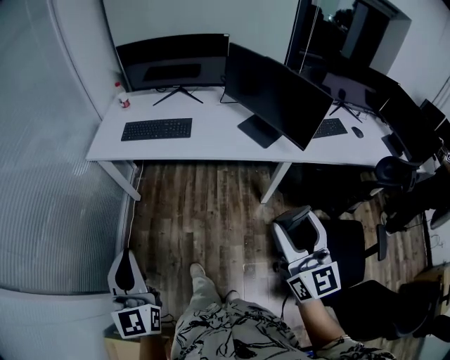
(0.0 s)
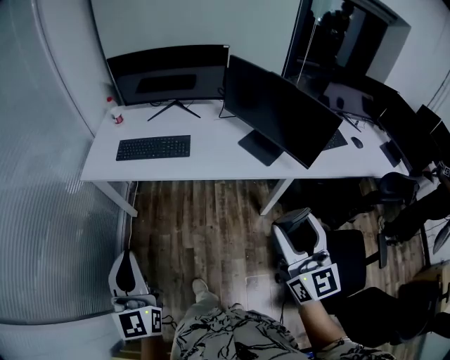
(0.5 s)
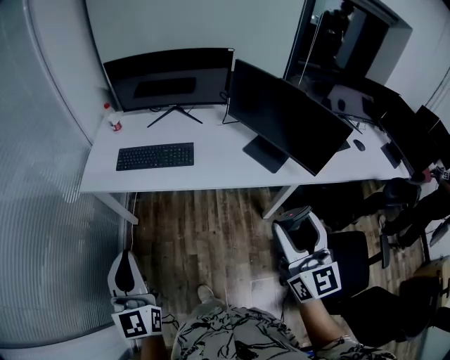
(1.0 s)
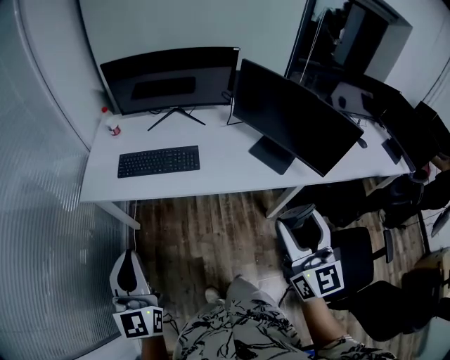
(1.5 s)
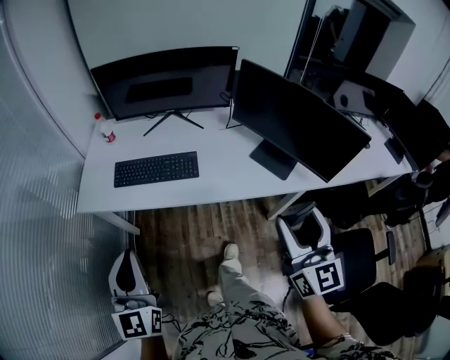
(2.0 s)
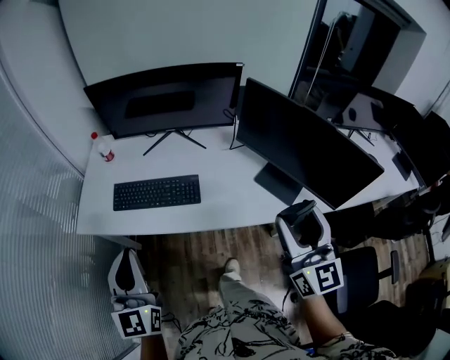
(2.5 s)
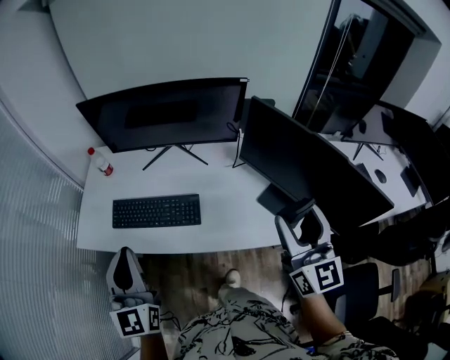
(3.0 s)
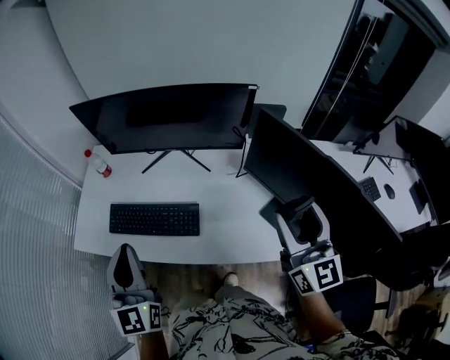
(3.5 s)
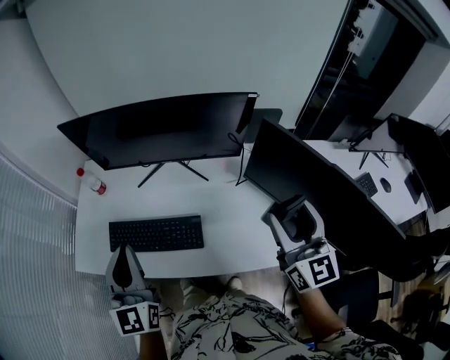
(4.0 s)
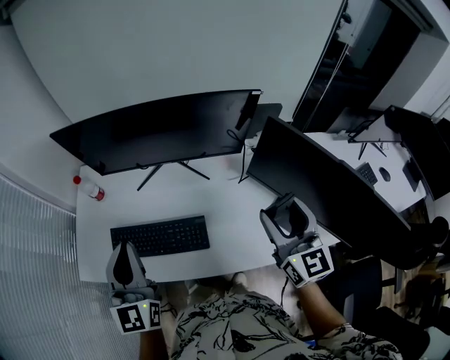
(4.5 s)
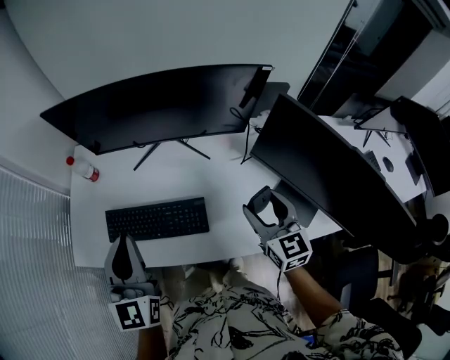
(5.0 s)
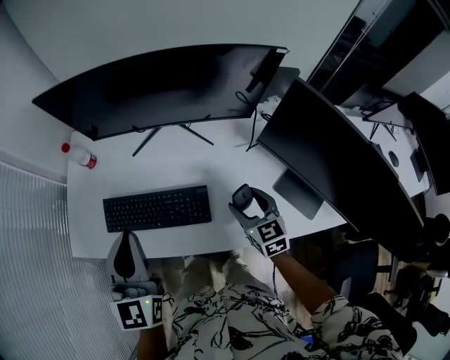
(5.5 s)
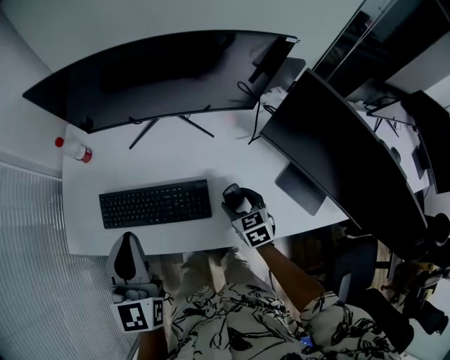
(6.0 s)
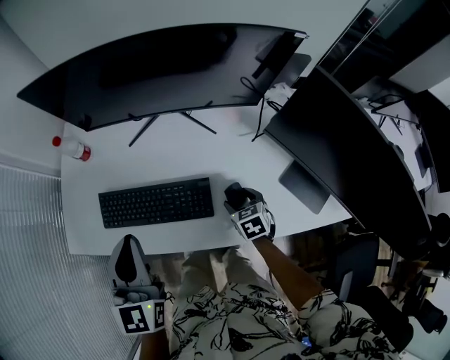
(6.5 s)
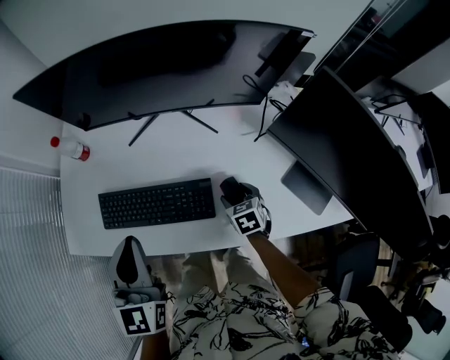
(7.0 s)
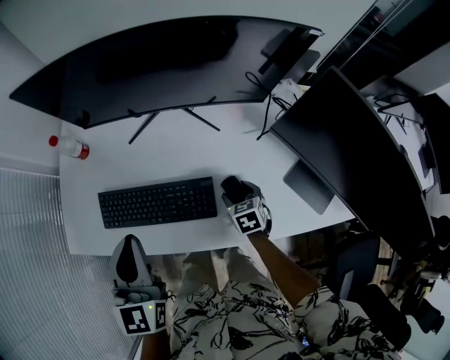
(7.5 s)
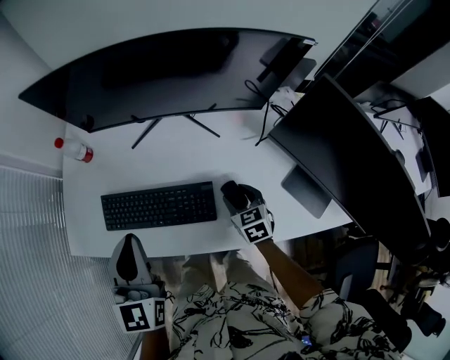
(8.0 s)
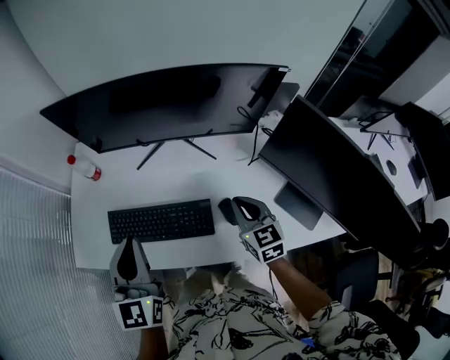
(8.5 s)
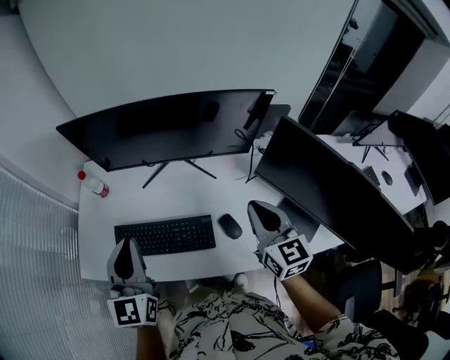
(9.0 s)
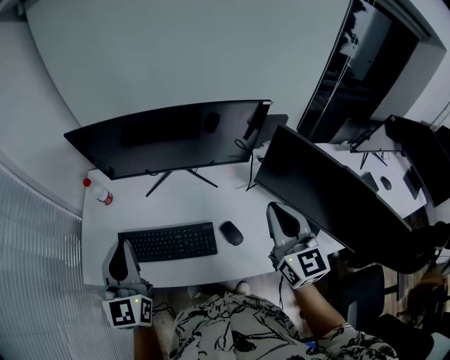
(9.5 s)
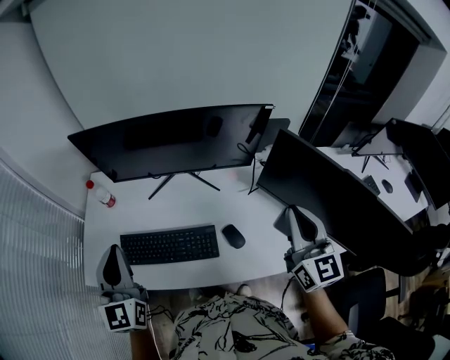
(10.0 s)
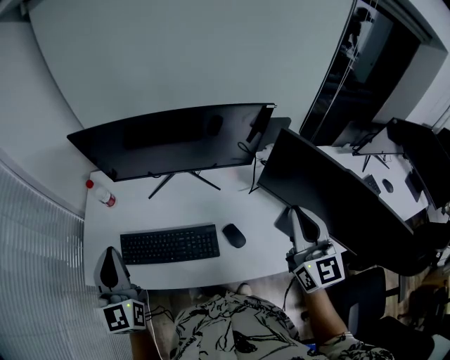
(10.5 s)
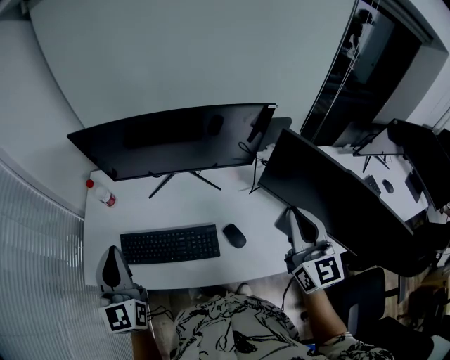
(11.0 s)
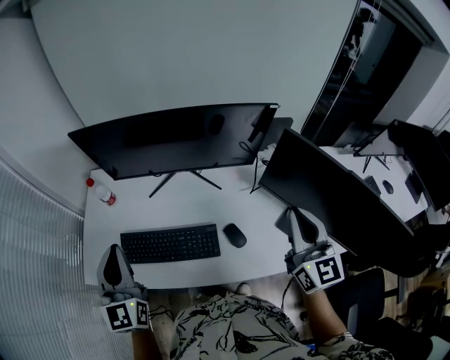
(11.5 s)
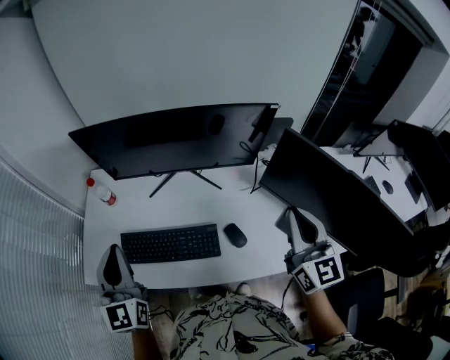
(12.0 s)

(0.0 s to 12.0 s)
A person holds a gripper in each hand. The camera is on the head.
0.0 s - 2.0 s: The two grippers go about 25 cm forward.
2.0 s - 4.0 s: Both grippers travel together forward, some 35 cm.
4.0 s - 6.0 s: The right gripper goes about 35 cm downward, and tilts its fingers about 50 degrees downward. Meanwhile the left gripper travels downward by roughly 10 cm.
8.0 s - 10.0 s: The left gripper shifts about 10 cm upward and to the left; the right gripper moves upward, about 35 cm, angles its fingers upward, by some 50 degrees, and closes its fingers.
10.0 s - 12.0 s: There are only small adjustments of the grippers.

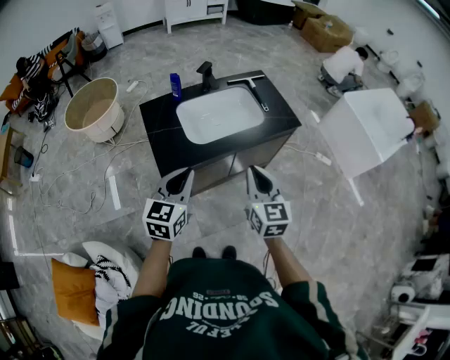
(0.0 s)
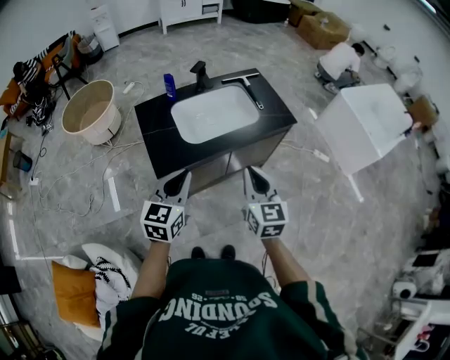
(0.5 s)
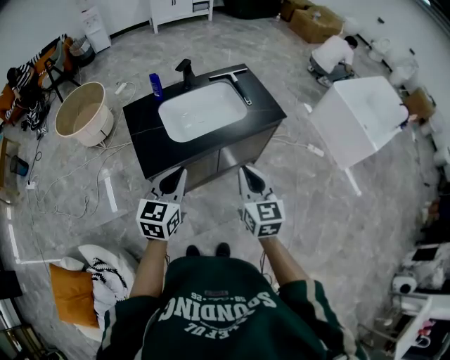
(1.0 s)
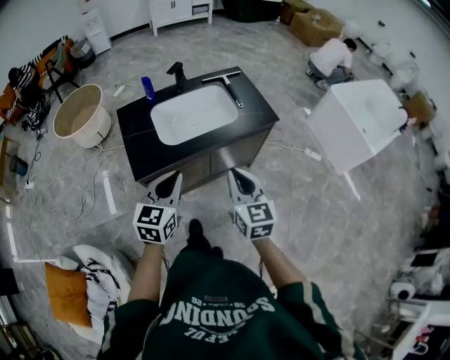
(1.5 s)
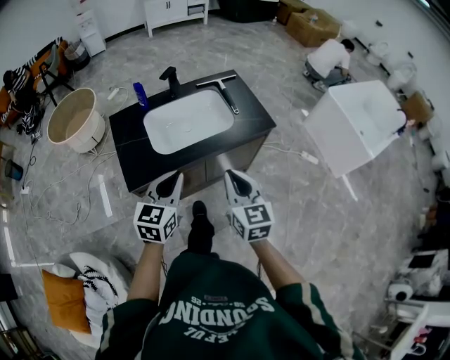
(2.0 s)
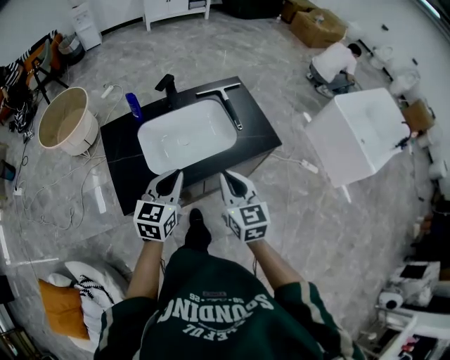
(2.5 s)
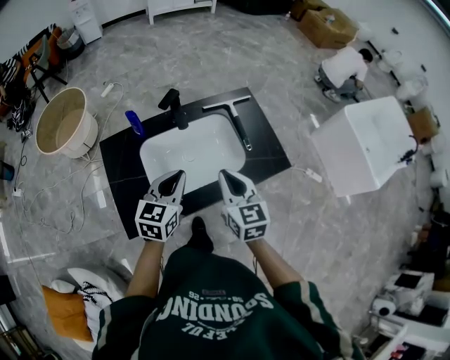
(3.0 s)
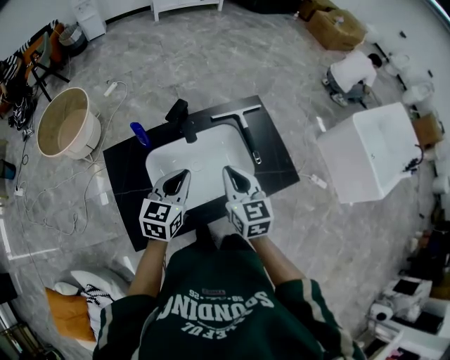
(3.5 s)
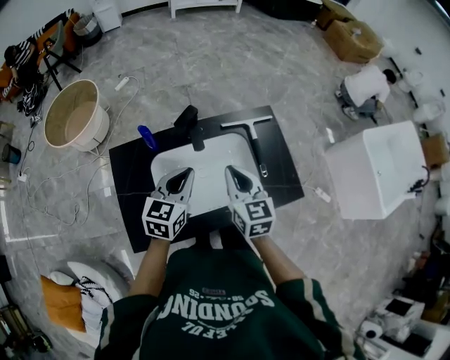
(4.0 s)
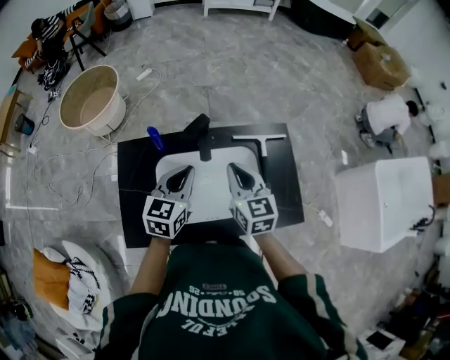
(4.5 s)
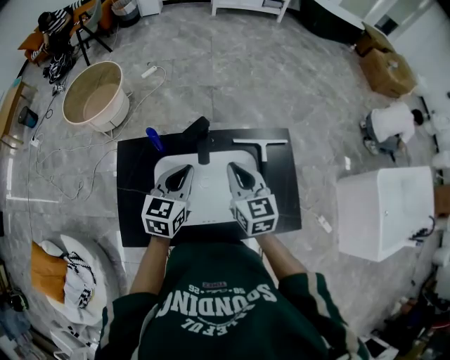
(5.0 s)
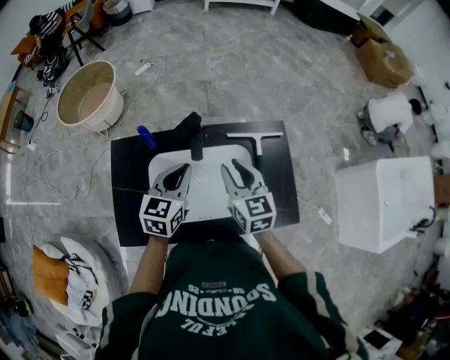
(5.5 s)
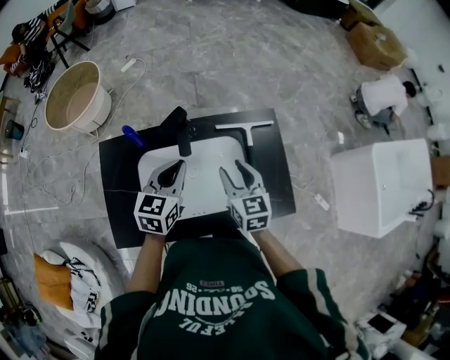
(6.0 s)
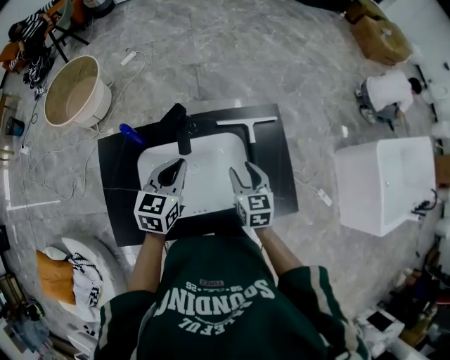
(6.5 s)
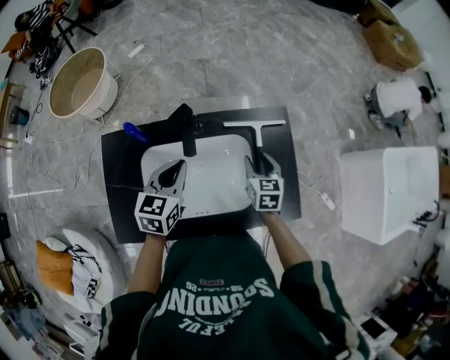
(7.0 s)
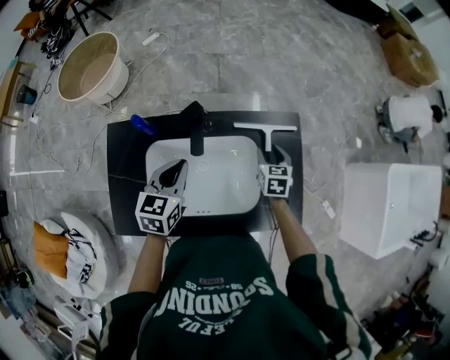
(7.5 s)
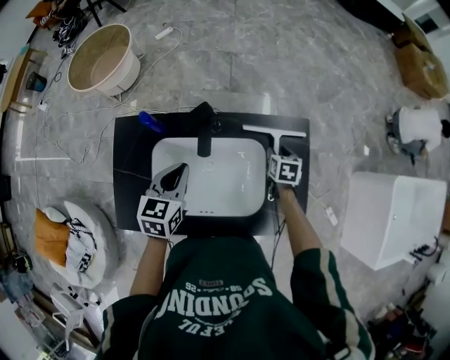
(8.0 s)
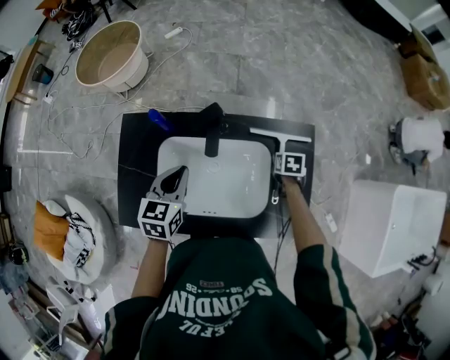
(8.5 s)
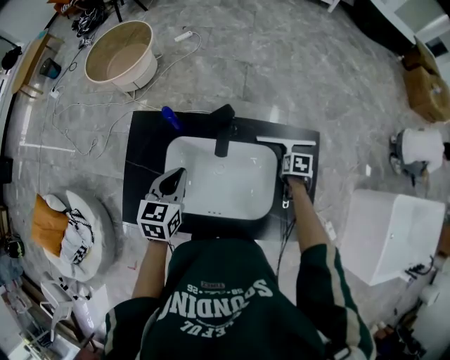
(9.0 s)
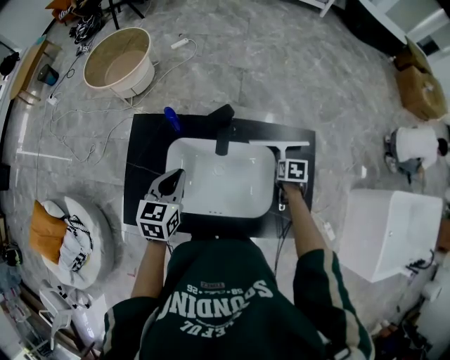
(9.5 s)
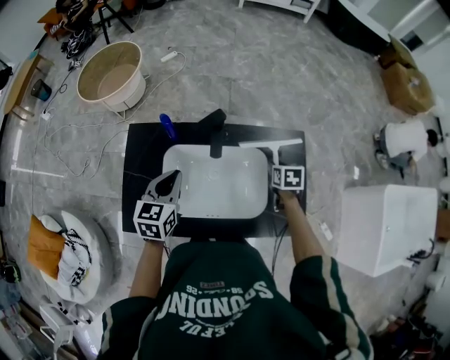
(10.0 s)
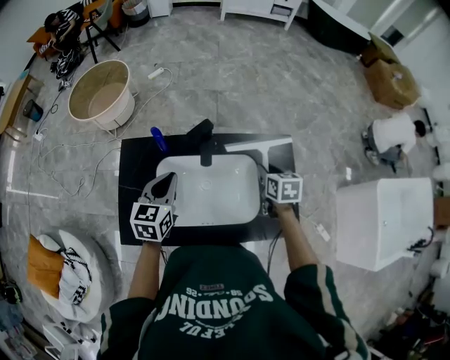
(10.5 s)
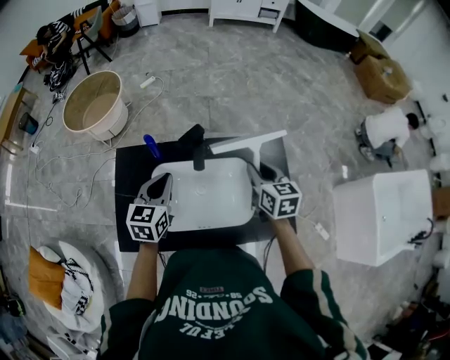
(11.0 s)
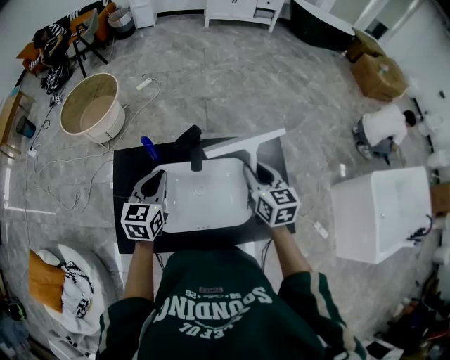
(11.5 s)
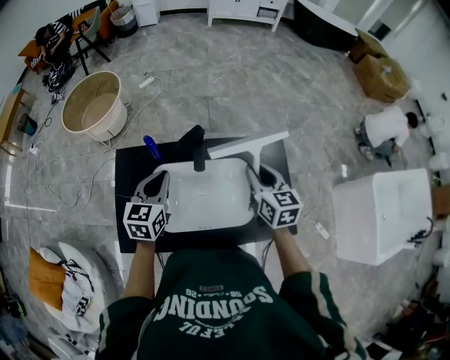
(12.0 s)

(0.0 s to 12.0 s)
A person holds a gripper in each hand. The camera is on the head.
0.0 s - 2.0 s: The right gripper goes about 10 cm to the right, while the left gripper moves to the right and forward, about 15 cm.
2.0 s - 4.0 s: The two grippers go roughly 35 cm forward.
4.0 s - 6.0 s: The left gripper travels forward by about 5 cm. The right gripper moves downward, forward and to the right, about 10 cm, and opens its fingers.
6.0 s - 8.0 s: The left gripper changes place by approximately 5 cm. Meanwhile the right gripper travels downward, forward and to the right by about 25 cm, and tilts its fingers about 30 degrees downward.
8.0 s - 10.0 s: The right gripper shifts roughly 5 cm upward, and closes its fingers. Meanwhile the left gripper goes about 5 cm to the left.
10.0 s - 12.0 s: The right gripper moves upward, approximately 20 cm, and angles its fingers upward, by about 40 degrees; the left gripper moves roughly 5 cm.

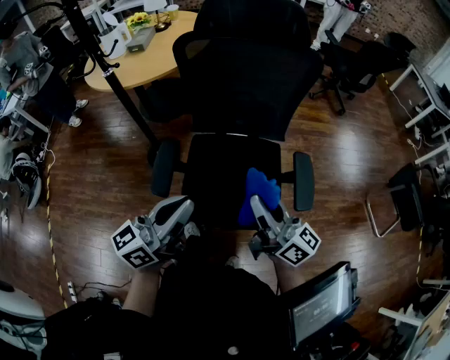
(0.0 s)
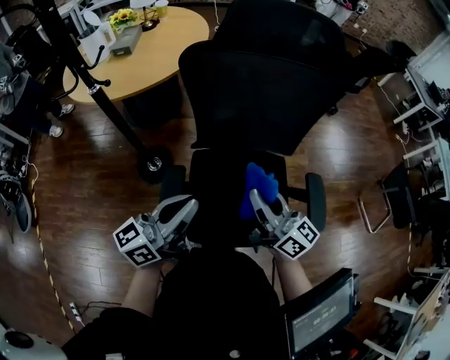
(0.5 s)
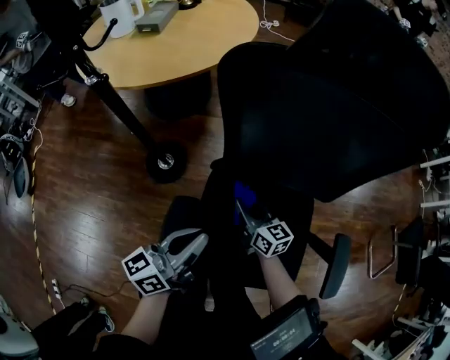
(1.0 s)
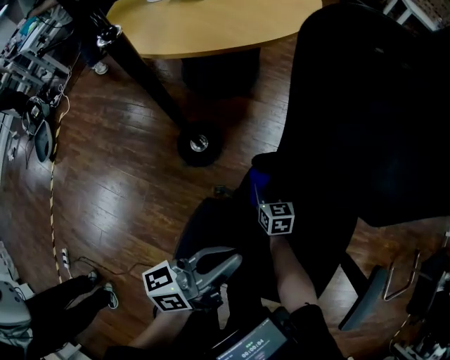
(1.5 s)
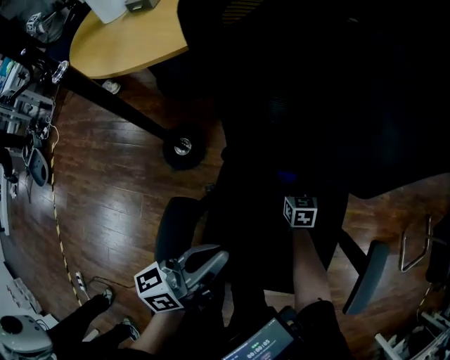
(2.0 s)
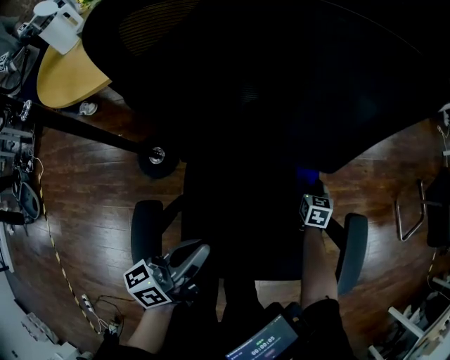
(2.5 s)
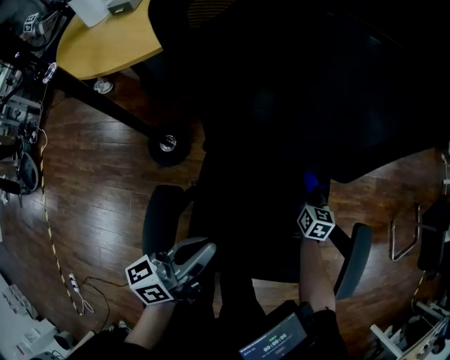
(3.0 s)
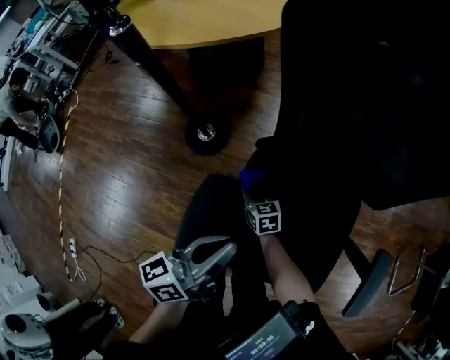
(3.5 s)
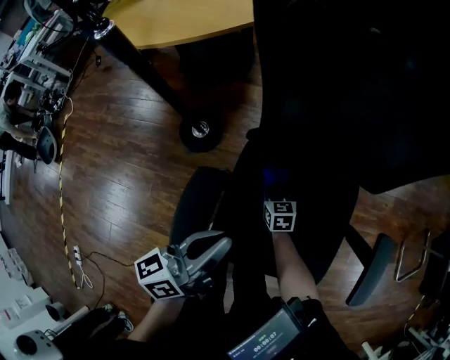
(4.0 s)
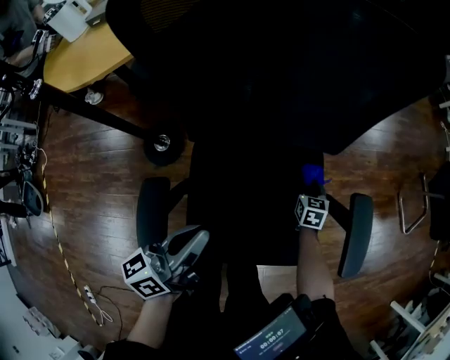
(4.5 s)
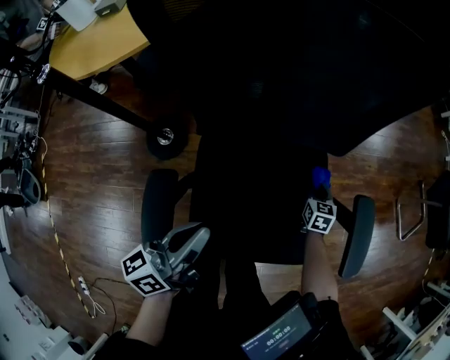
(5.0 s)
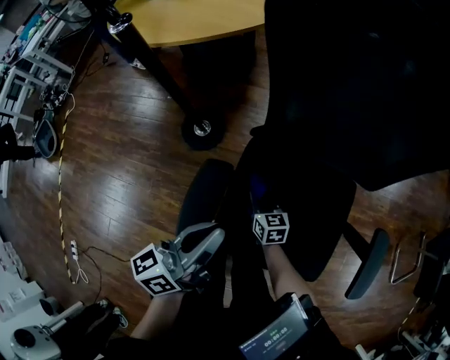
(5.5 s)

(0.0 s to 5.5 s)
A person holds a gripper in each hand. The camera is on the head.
0.0 s - 2.0 s: The left gripper moves downward and forward, about 30 cm, and swivels roughly 30 degrees. The right gripper moves downward and forward, approximately 60 cm, and points its fingers approximately 60 degrees further downward.
2.0 s - 3.5 s: The right gripper ends up some 25 cm from where it was, and turns by about 20 degrees.
